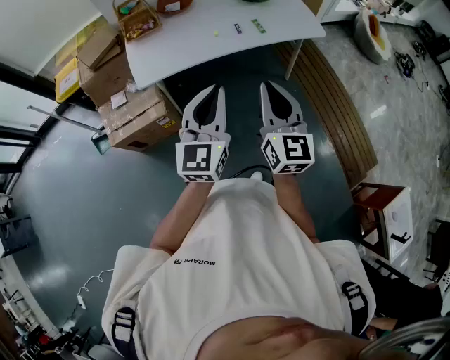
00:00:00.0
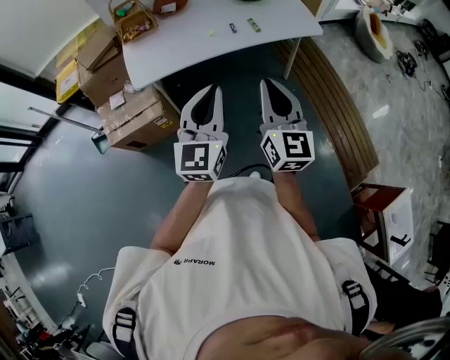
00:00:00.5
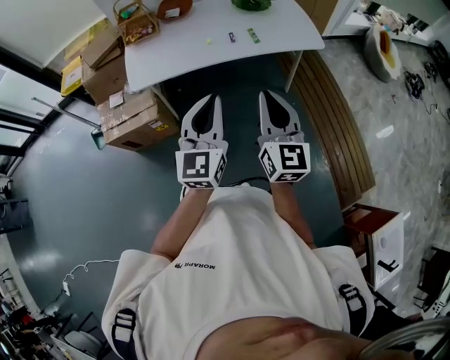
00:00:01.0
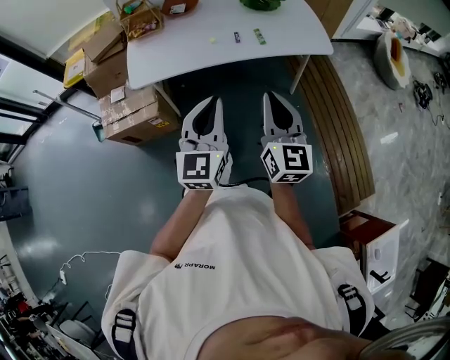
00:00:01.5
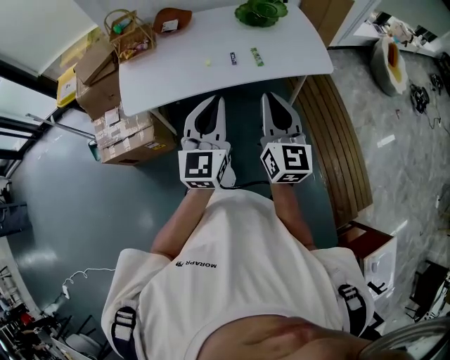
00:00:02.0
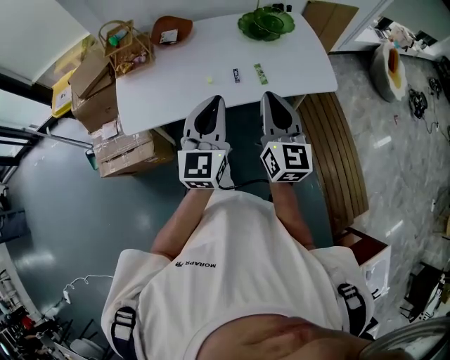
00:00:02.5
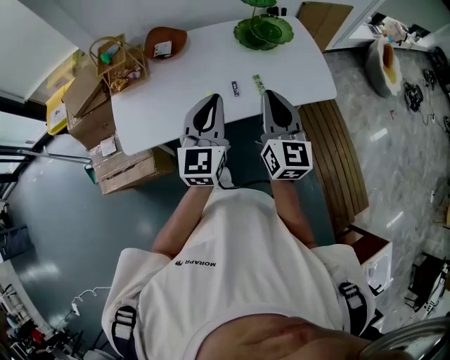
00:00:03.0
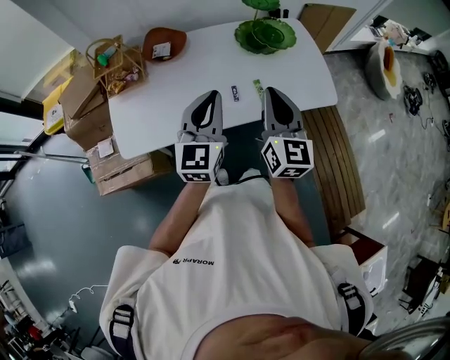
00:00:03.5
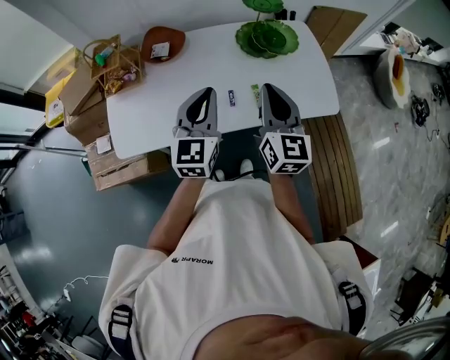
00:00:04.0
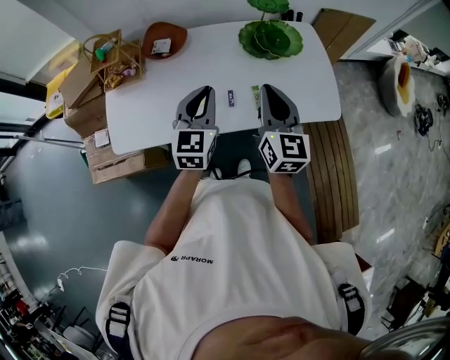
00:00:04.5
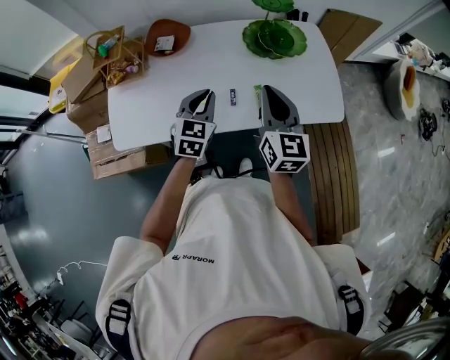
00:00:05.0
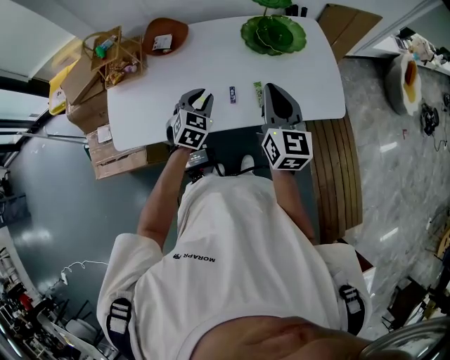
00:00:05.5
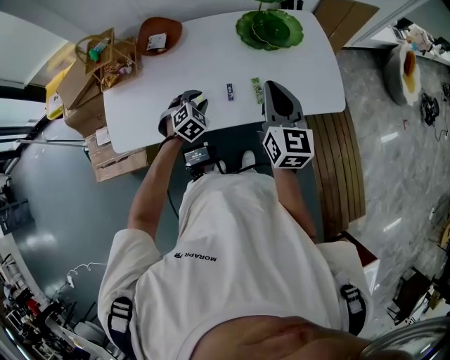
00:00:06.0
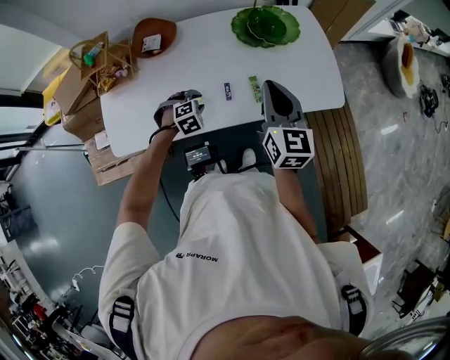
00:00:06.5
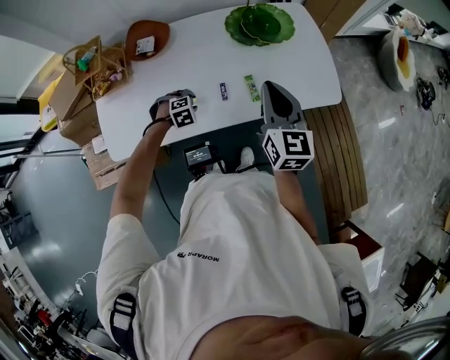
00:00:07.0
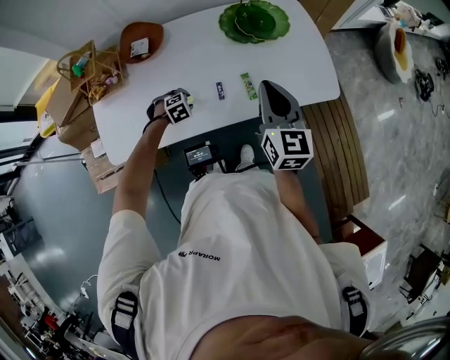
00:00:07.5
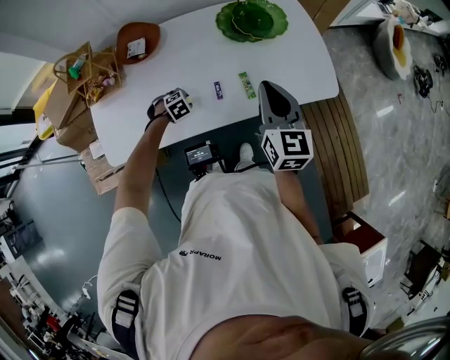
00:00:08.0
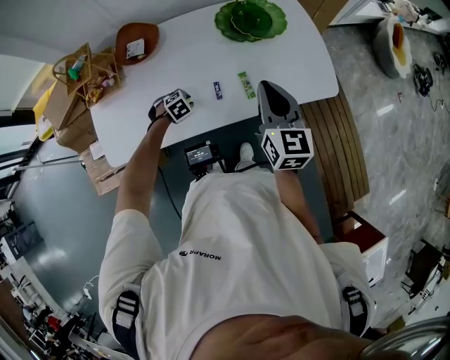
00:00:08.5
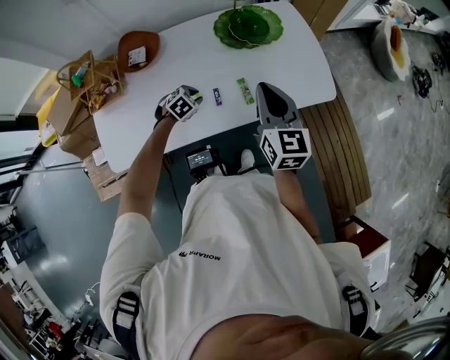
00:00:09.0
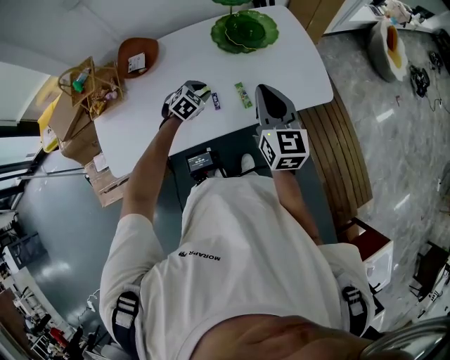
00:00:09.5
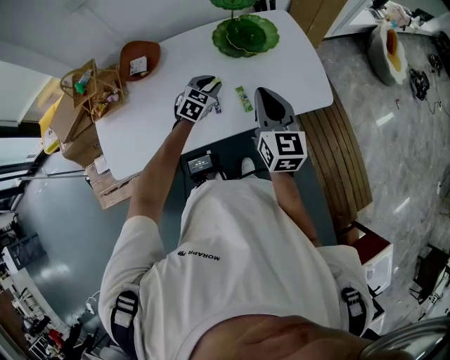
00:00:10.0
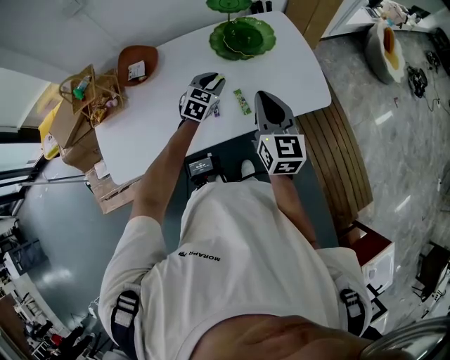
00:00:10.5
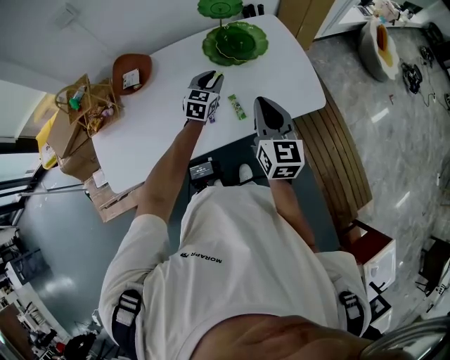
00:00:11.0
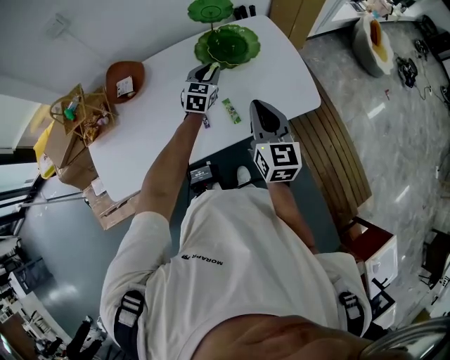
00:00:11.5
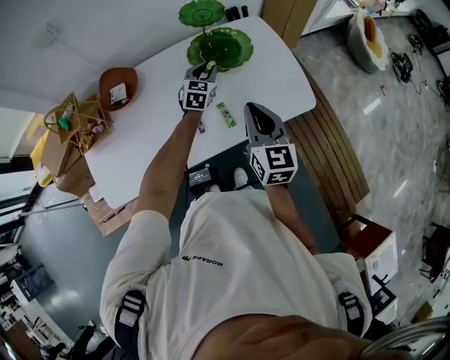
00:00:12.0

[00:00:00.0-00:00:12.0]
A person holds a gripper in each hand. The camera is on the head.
00:00:00.0 to 00:00:02.0: Both grippers move forward and to the right, about 25 cm.
00:00:02.0 to 00:00:04.0: Both grippers move forward, approximately 30 cm.
00:00:04.0 to 00:00:06.0: The left gripper is displaced downward by approximately 25 cm, angles its fingers downward, by some 50 degrees, and opens. The right gripper is displaced downward by some 5 cm.
00:00:06.0 to 00:00:08.0: The left gripper travels downward by roughly 15 cm, and swivels roughly 30 degrees.
00:00:08.0 to 00:00:10.0: The left gripper heads upward, covering about 15 cm, and tips its fingers upward by some 40 degrees.
00:00:10.0 to 00:00:12.0: The left gripper goes about 15 cm forward and to the right.

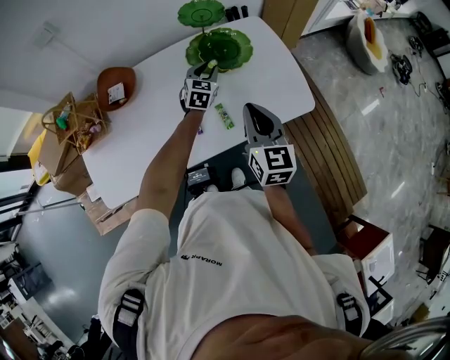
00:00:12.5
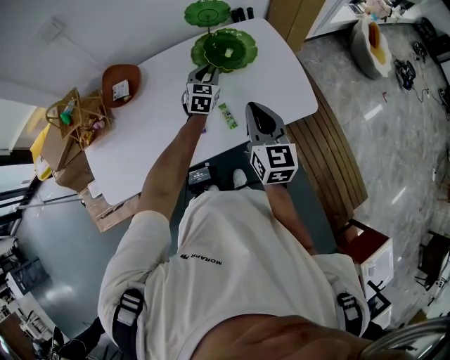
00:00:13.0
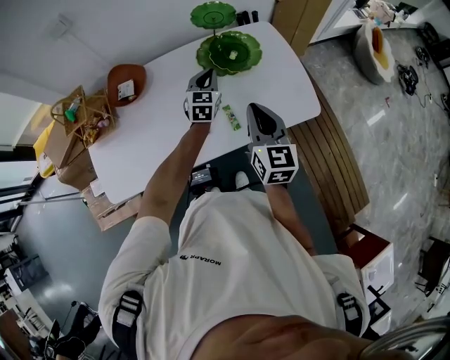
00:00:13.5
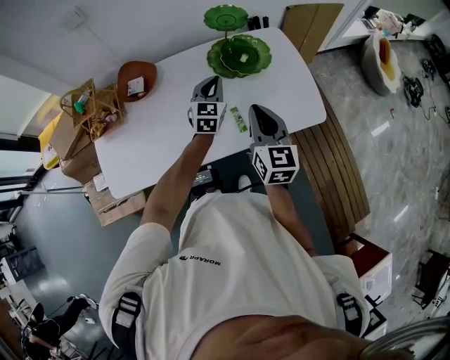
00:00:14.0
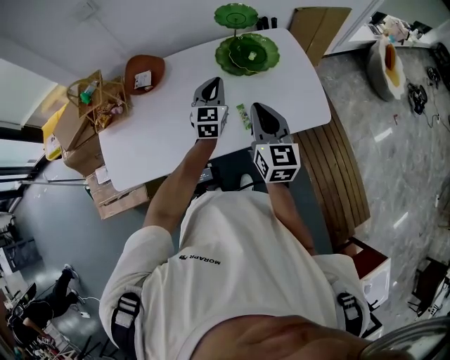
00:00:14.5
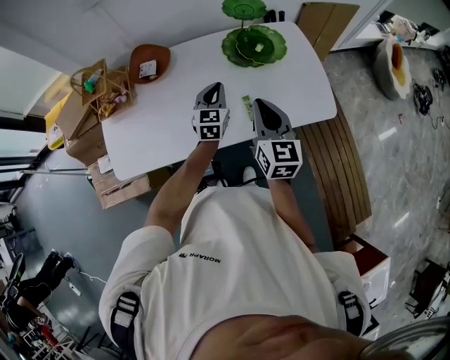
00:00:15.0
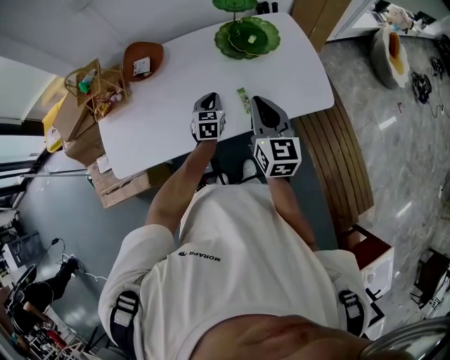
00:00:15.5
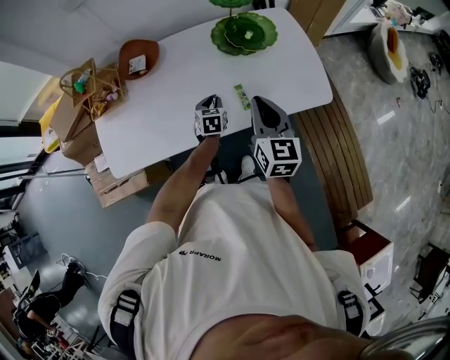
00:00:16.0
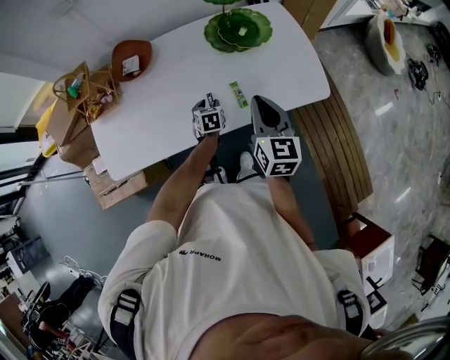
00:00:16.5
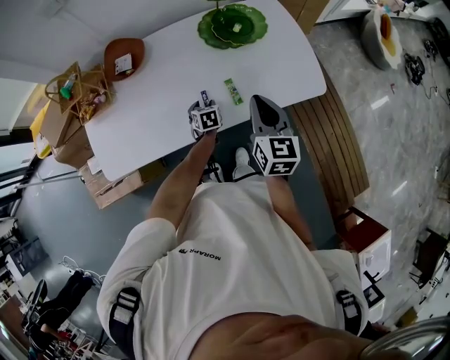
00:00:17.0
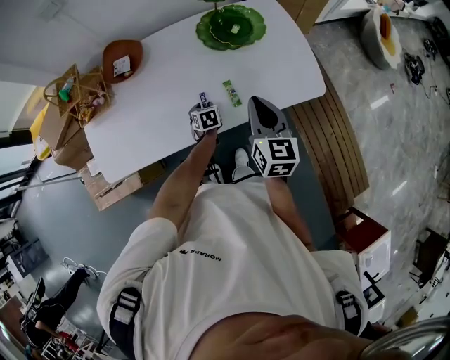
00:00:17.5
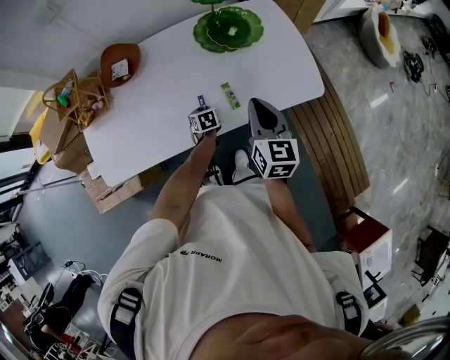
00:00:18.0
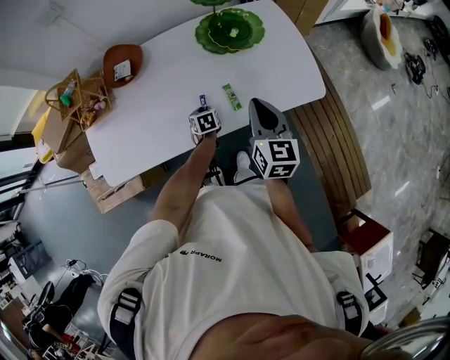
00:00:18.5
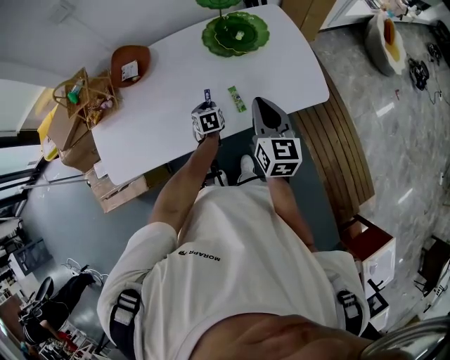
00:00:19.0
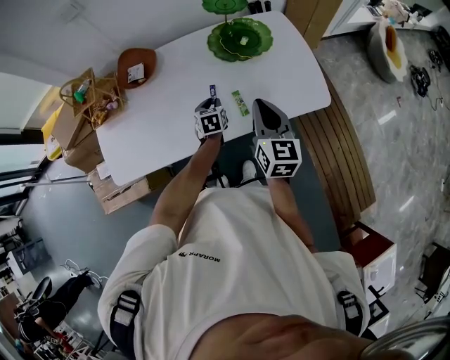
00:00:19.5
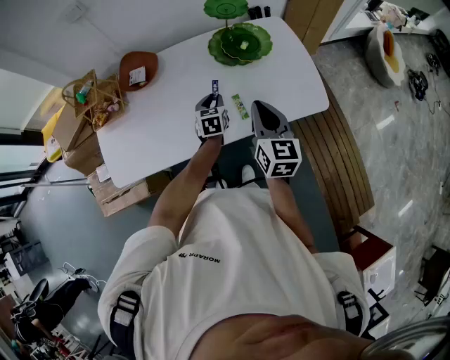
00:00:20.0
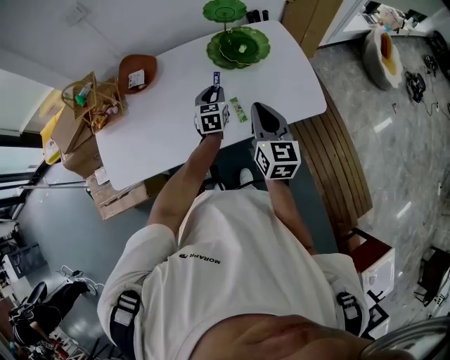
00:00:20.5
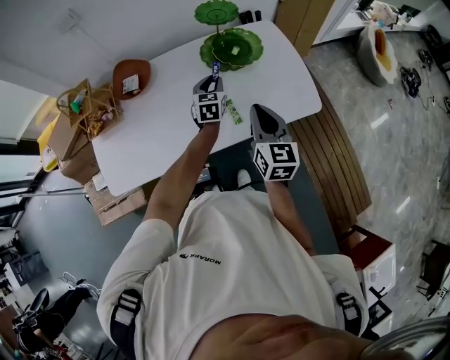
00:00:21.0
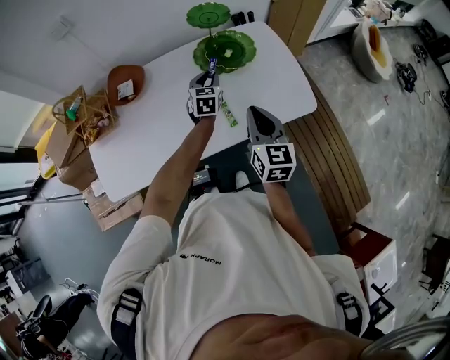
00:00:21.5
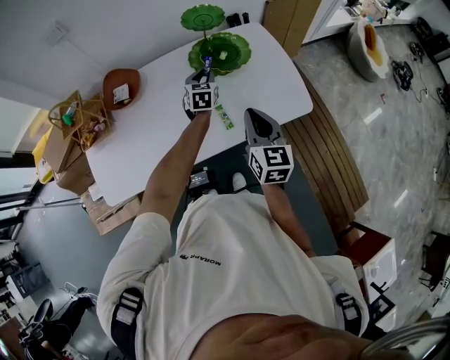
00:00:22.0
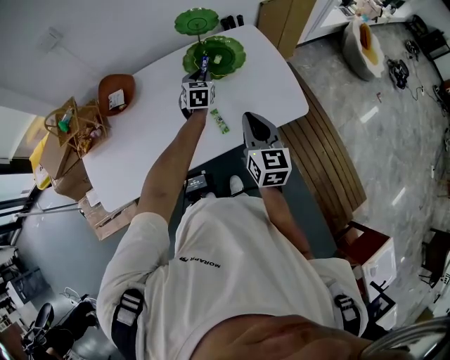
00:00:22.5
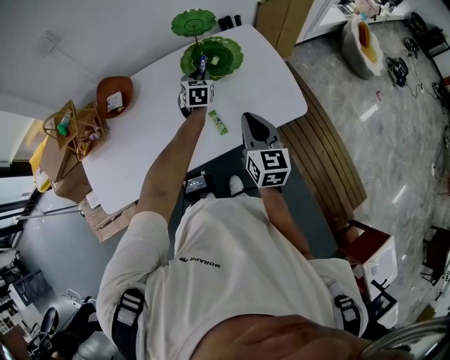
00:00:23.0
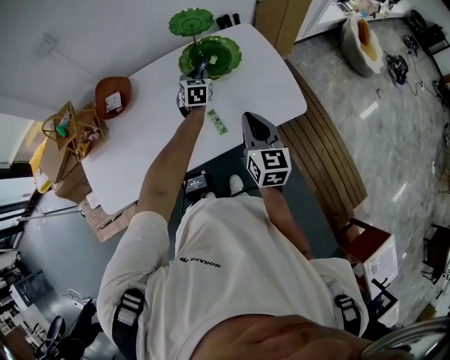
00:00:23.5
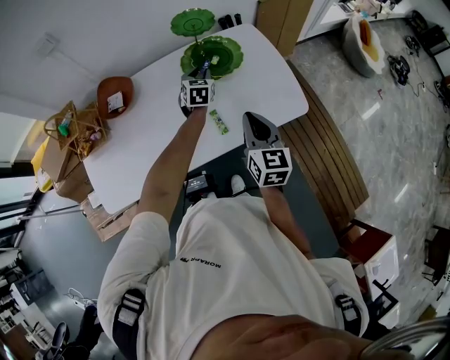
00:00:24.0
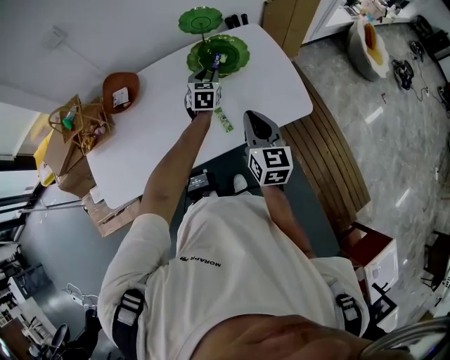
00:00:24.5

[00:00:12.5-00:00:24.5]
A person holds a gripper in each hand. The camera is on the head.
00:00:12.5 to 00:00:14.5: The right gripper changes place by about 5 cm; the left gripper heads backward, upward and to the left, covering approximately 15 cm, turns by approximately 20 degrees, and closes up.
00:00:14.5 to 00:00:16.5: The left gripper moves downward, some 25 cm, tilts its fingers approximately 40 degrees downward, and opens. Meanwhile the right gripper ends up about 5 cm from where it was.
00:00:16.5 to 00:00:18.5: There are only small adjustments of the grippers.
00:00:18.5 to 00:00:20.5: The left gripper heads upward, covering approximately 20 cm, and rotates roughly 30 degrees.
00:00:20.5 to 00:00:22.5: The left gripper goes approximately 15 cm forward and to the right.
00:00:22.5 to 00:00:24.5: There are only small adjustments of the grippers.

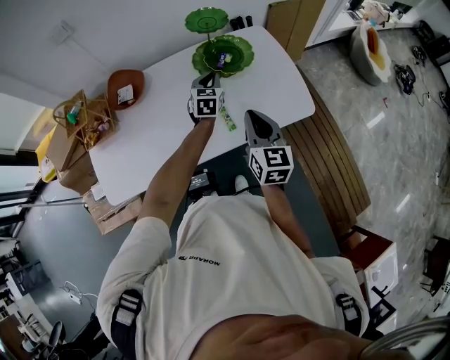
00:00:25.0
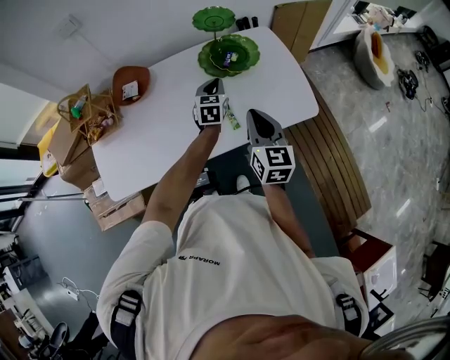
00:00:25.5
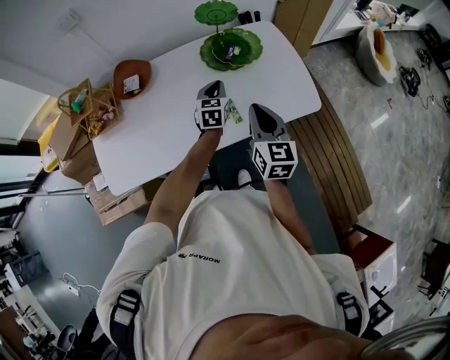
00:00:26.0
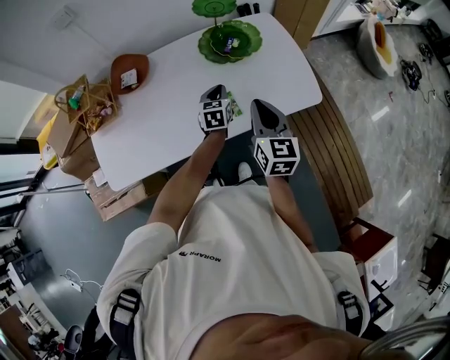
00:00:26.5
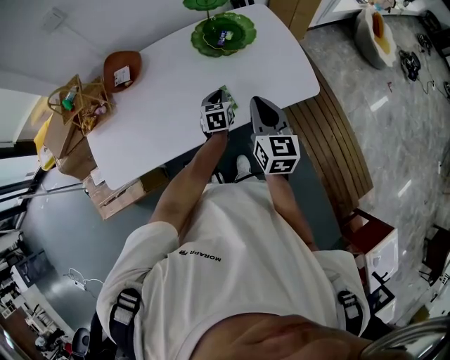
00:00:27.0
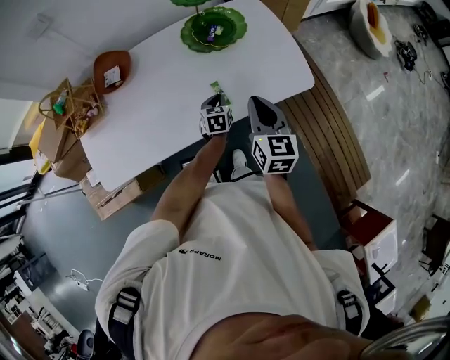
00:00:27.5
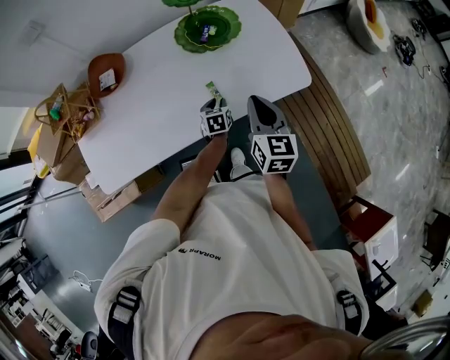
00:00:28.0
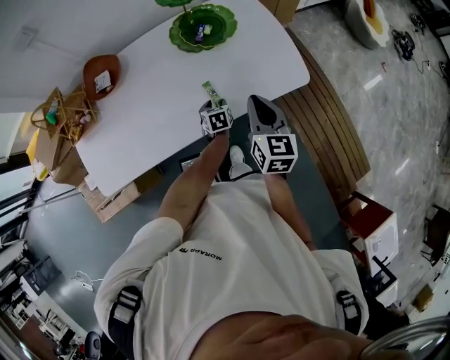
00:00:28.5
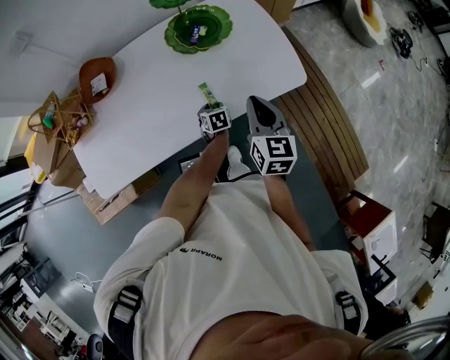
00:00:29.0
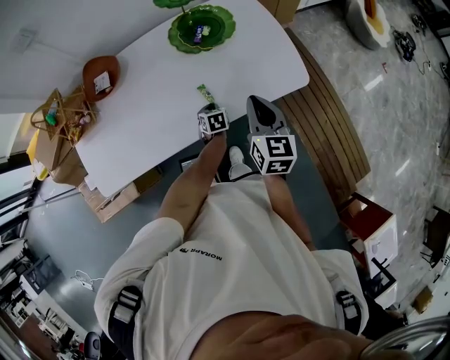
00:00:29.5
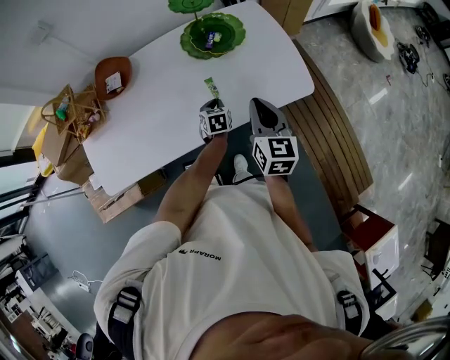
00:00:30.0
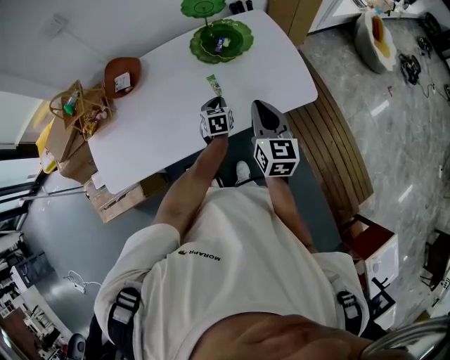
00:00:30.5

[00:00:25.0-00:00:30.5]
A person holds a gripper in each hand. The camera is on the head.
00:00:25.0 to 00:00:27.0: The left gripper moves backward and downward, roughly 15 cm.
00:00:27.0 to 00:00:28.5: The right gripper moves some 5 cm. Meanwhile the left gripper is displaced downward by approximately 10 cm, and opens.
00:00:28.5 to 00:00:30.5: The left gripper is displaced upward by approximately 10 cm, and closes.
